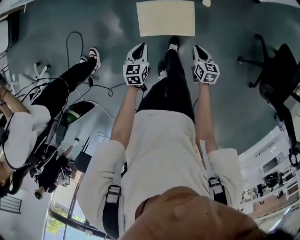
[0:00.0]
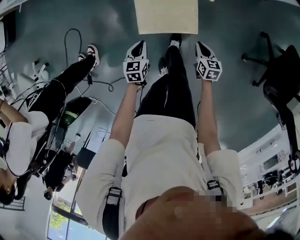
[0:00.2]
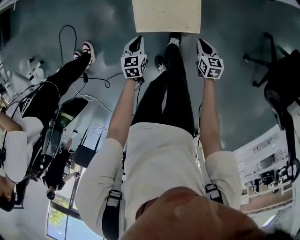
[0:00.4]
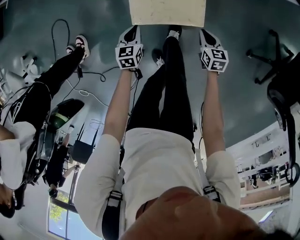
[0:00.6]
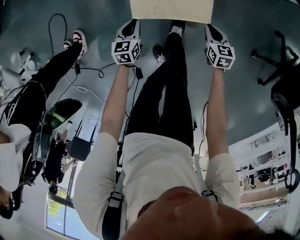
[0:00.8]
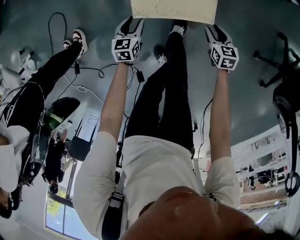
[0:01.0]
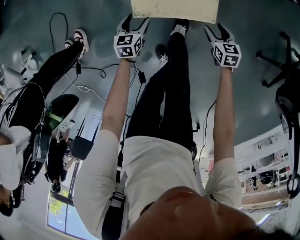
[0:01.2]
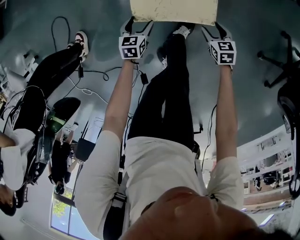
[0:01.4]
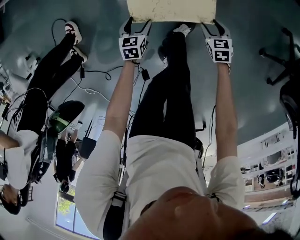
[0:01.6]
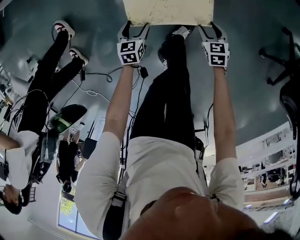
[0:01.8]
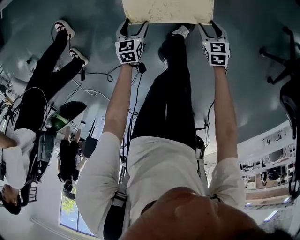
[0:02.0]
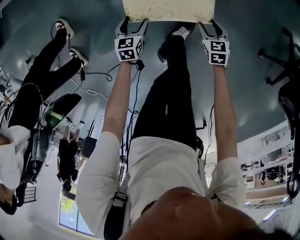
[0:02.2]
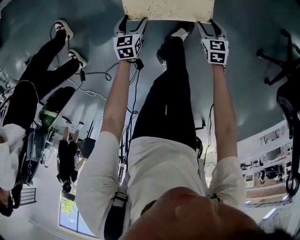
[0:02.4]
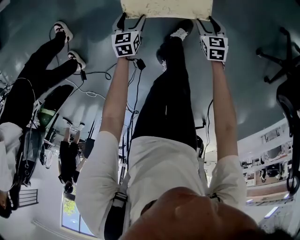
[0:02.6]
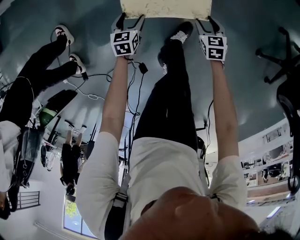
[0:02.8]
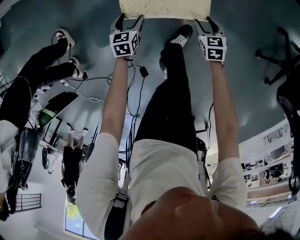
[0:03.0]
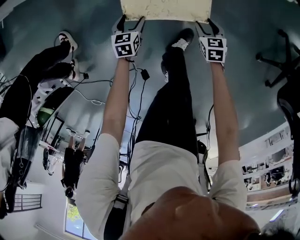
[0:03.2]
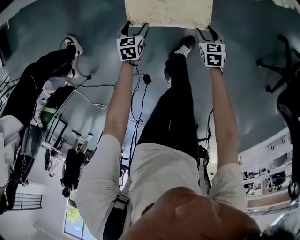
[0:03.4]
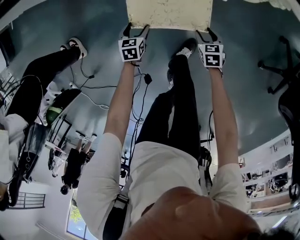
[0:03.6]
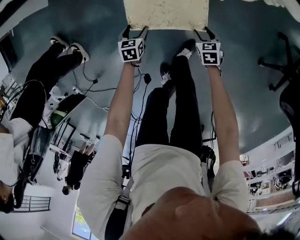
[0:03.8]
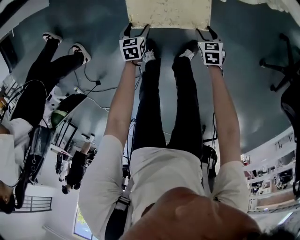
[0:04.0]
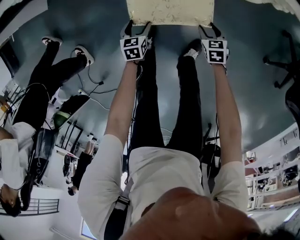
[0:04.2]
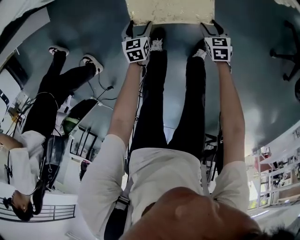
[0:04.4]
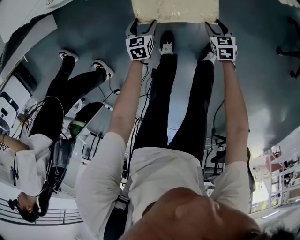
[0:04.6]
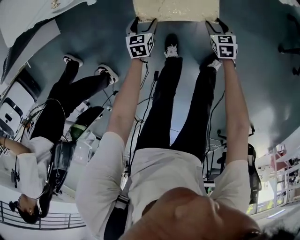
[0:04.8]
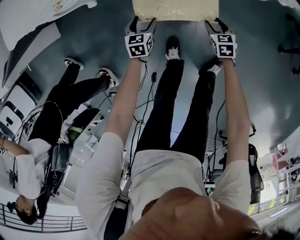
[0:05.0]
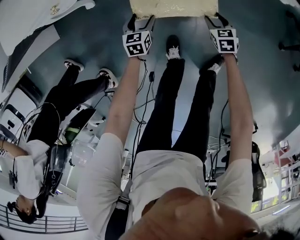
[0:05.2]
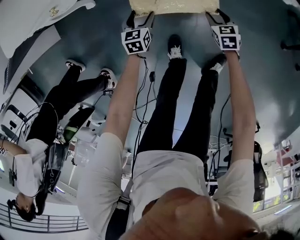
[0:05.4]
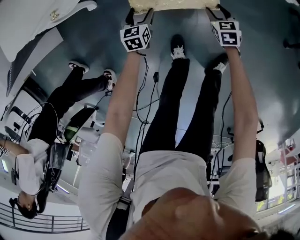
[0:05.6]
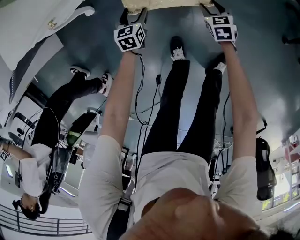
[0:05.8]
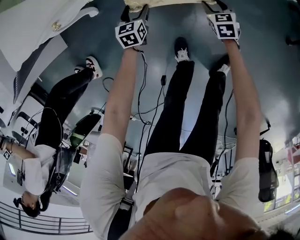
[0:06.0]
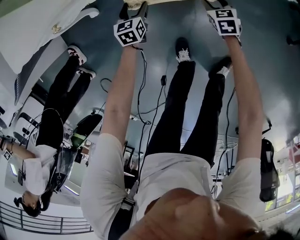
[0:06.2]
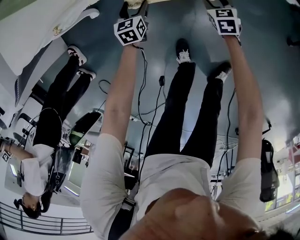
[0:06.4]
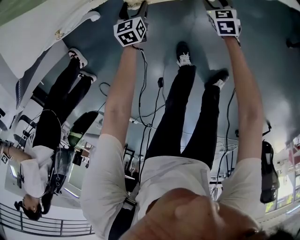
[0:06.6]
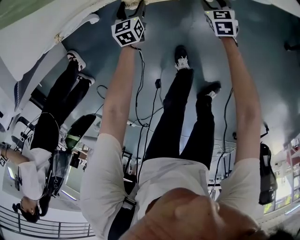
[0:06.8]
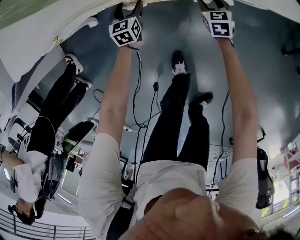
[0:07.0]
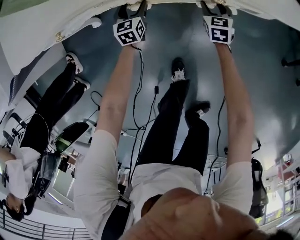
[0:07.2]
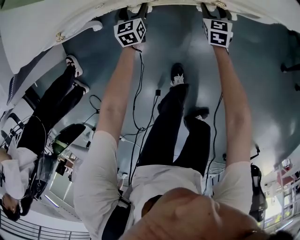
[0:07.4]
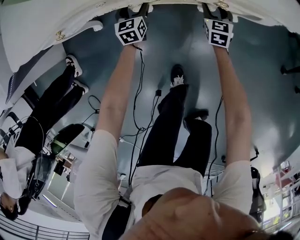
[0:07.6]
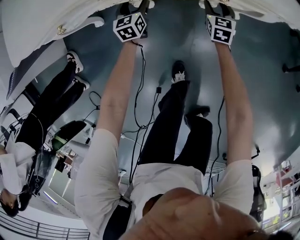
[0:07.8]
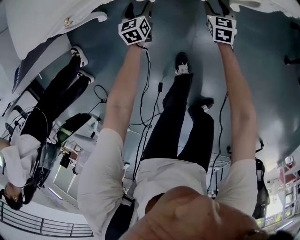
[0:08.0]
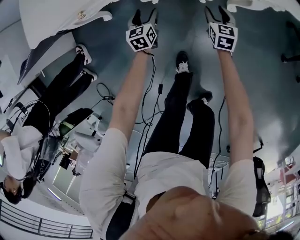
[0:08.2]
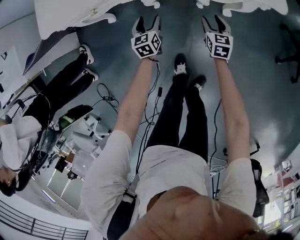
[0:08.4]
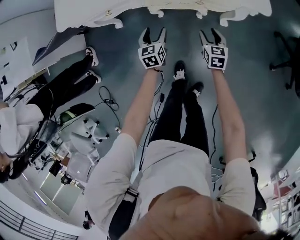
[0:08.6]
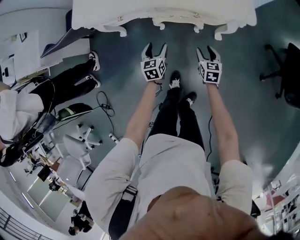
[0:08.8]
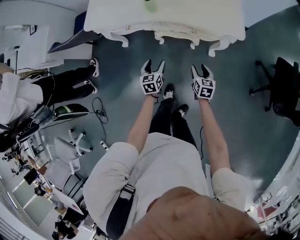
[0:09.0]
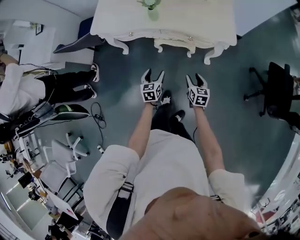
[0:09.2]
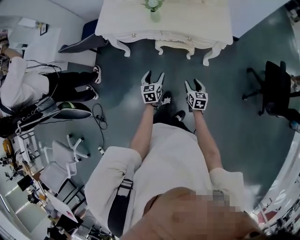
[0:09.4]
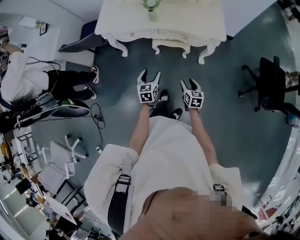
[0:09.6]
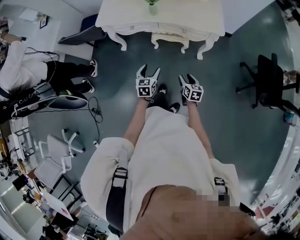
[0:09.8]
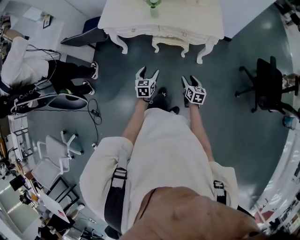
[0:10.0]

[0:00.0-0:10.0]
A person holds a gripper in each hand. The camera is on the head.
0:00.0 to 0:01.4: The grippers both shift downward by about 20 cm. The left gripper opens; the right gripper turns by roughly 20 degrees, and opens.
0:01.4 to 0:02.8: The two grippers go approximately 10 cm forward.
0:02.8 to 0:04.2: The right gripper goes approximately 5 cm forward. Meanwhile the left gripper shifts approximately 10 cm forward.
0:04.2 to 0:05.8: The left gripper shifts approximately 20 cm forward. Meanwhile the right gripper moves forward and to the left, approximately 15 cm.
0:05.8 to 0:07.2: The grippers both shift forward by roughly 15 cm.
0:07.2 to 0:08.6: Both grippers move upward and backward, about 30 cm.
0:08.6 to 0:10.0: Both grippers move backward and upward, about 35 cm.

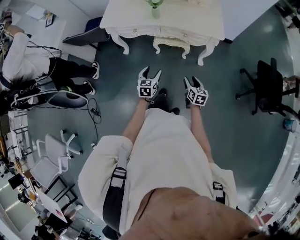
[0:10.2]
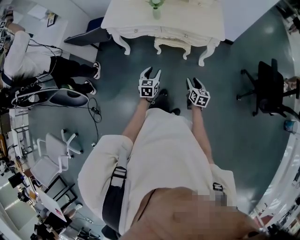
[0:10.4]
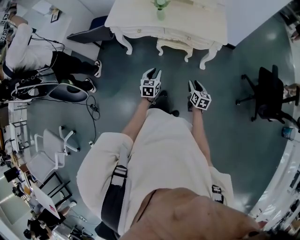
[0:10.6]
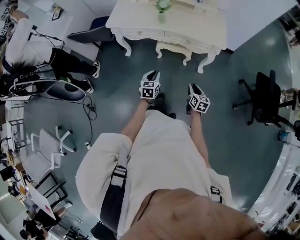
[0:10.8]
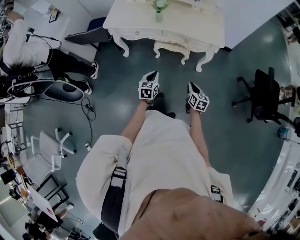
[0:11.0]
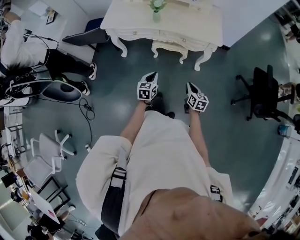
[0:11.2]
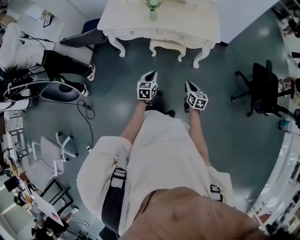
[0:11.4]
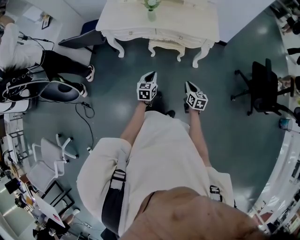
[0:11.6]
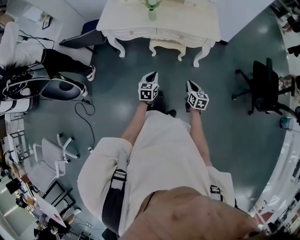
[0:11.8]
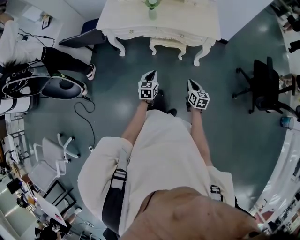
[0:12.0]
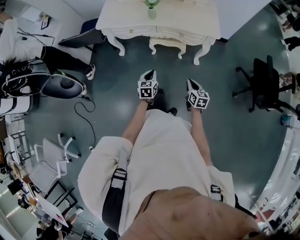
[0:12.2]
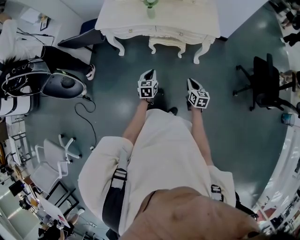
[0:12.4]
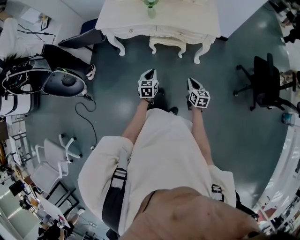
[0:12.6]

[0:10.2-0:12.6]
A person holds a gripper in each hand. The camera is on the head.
0:10.2 to 0:11.4: The left gripper closes up. Meanwhile the right gripper closes its fingers.
0:11.4 to 0:12.6: The grippers move only a little.

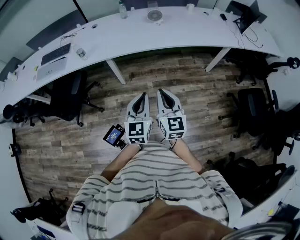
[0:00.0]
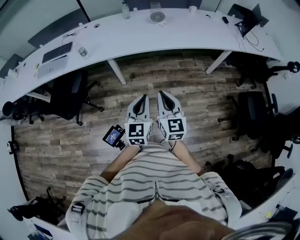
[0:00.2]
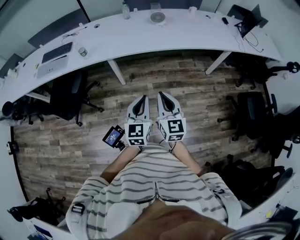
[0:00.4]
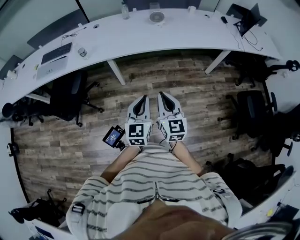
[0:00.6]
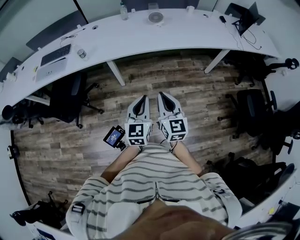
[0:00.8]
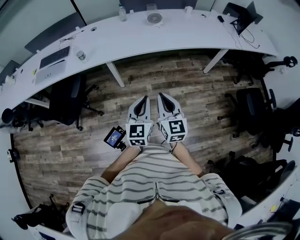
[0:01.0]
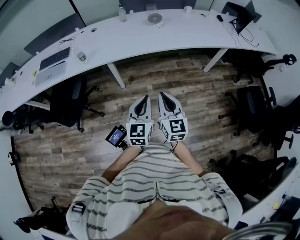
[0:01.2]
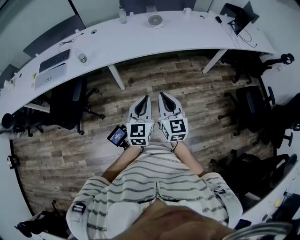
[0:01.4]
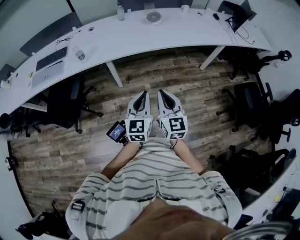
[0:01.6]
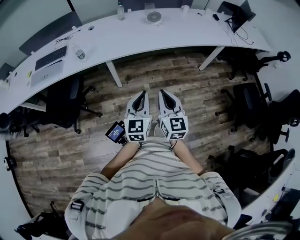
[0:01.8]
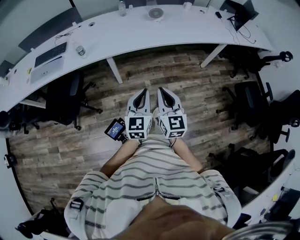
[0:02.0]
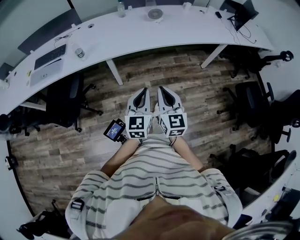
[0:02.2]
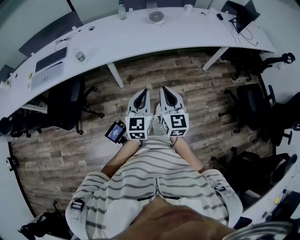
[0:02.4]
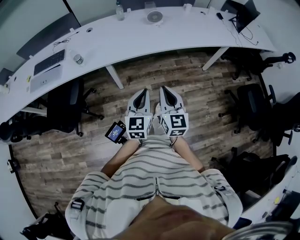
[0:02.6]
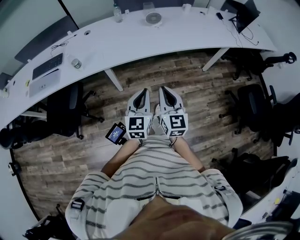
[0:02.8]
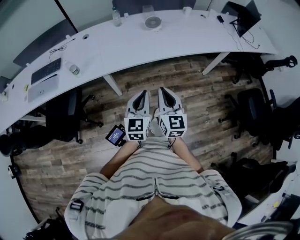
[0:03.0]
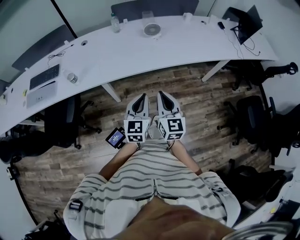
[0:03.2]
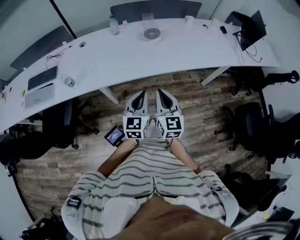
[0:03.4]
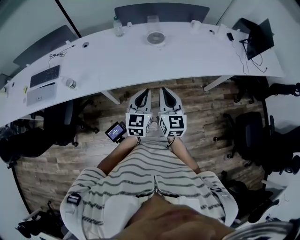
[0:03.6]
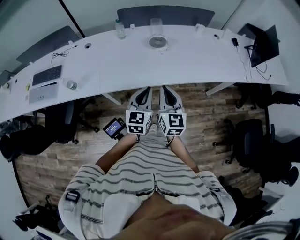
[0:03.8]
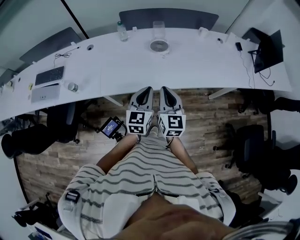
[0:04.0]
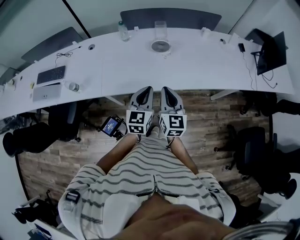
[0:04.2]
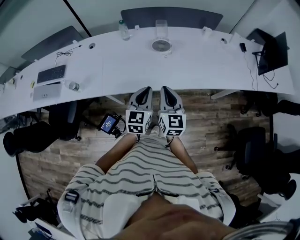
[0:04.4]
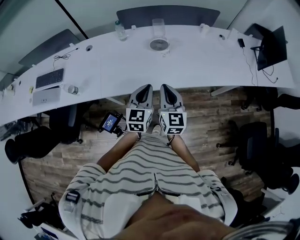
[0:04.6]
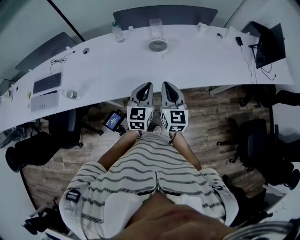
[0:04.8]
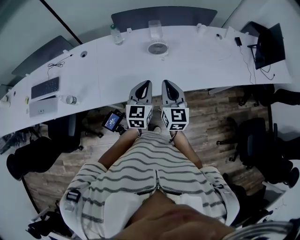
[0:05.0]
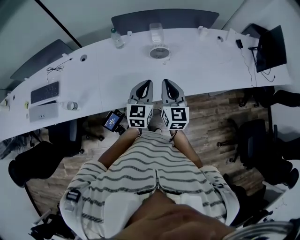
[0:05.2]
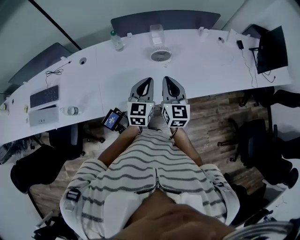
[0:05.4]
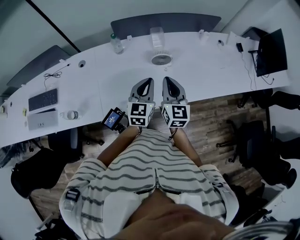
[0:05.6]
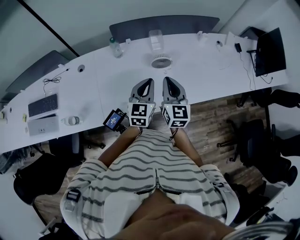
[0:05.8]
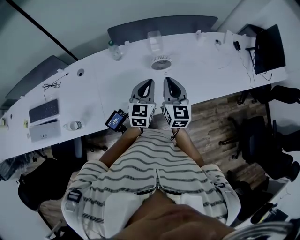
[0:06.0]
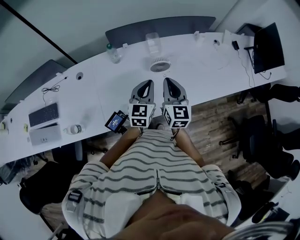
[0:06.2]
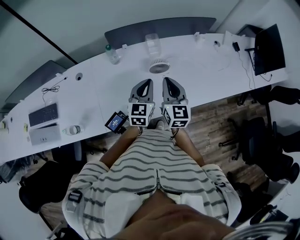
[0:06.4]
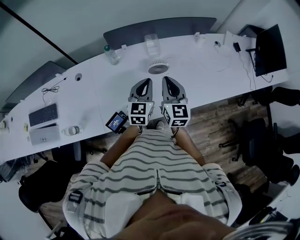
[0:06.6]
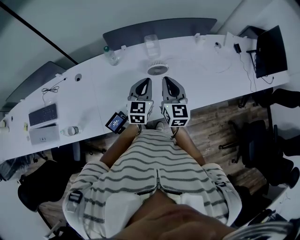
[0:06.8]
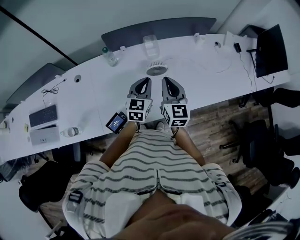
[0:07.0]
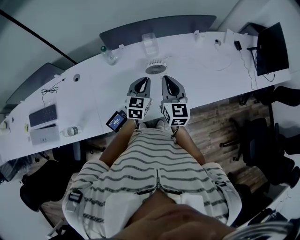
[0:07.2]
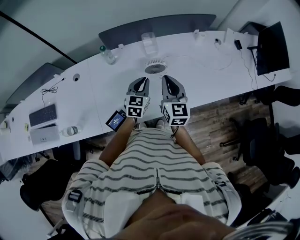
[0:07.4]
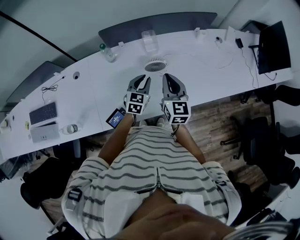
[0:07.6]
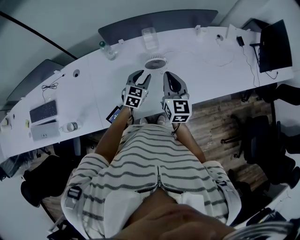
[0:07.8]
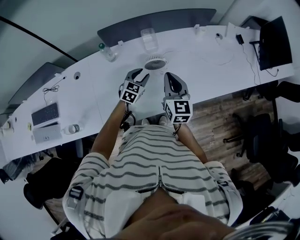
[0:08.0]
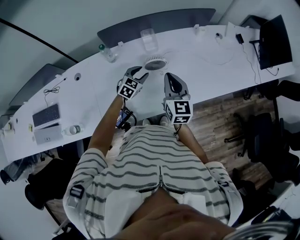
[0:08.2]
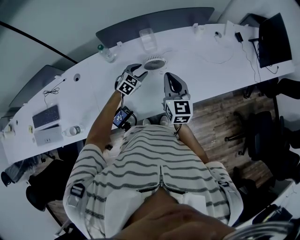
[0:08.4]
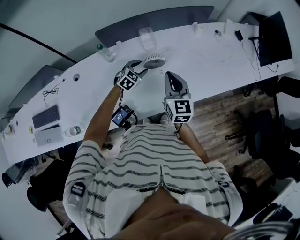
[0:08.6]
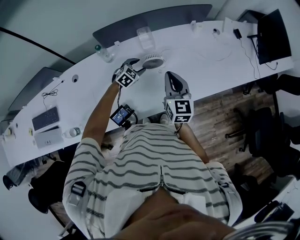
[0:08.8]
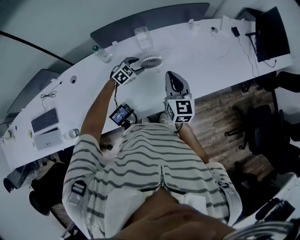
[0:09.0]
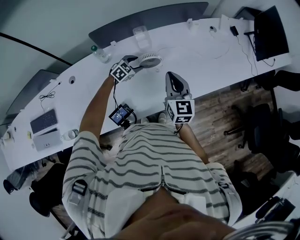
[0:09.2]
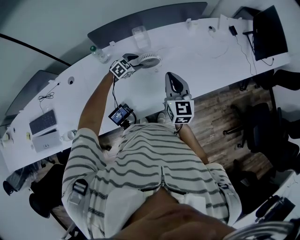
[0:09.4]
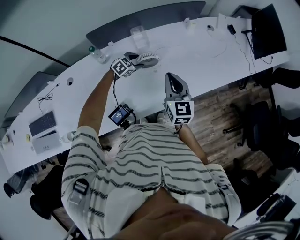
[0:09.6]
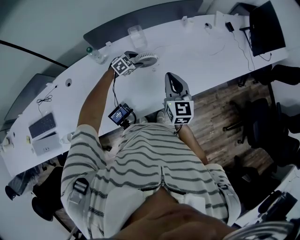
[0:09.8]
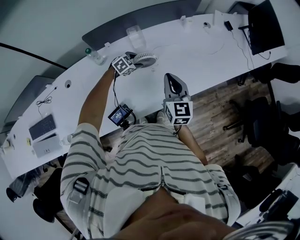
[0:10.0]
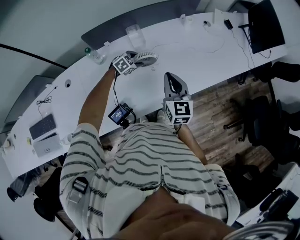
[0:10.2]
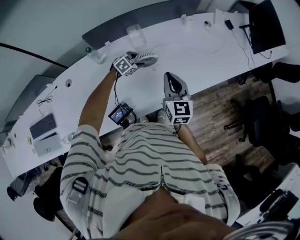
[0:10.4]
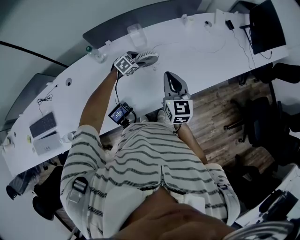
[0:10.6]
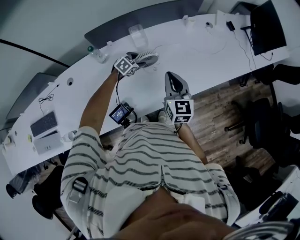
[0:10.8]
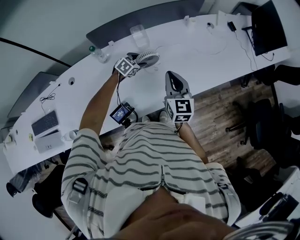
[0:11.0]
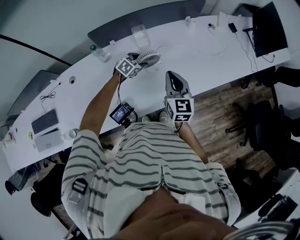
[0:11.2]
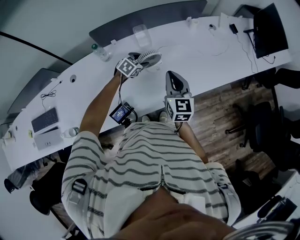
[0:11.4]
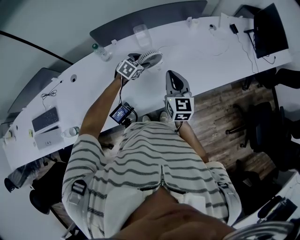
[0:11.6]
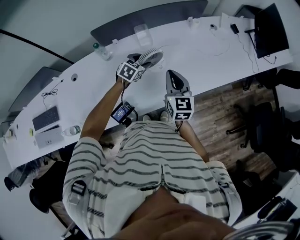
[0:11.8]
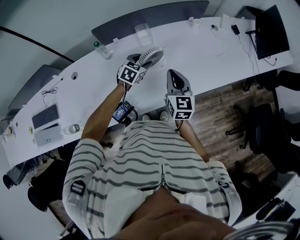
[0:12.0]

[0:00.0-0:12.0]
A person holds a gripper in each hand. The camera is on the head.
0:00.0 to 0:01.6: Both grippers move to the left, approximately 5 cm.
0:01.6 to 0:03.0: The grippers both shift forward by roughly 15 cm.
0:03.0 to 0:04.4: The grippers both shift forward by about 25 cm.
0:04.4 to 0:06.0: The grippers both shift forward by roughly 20 cm.
0:06.0 to 0:07.6: The left gripper goes about 15 cm downward and forward, while the right gripper heads forward, covering approximately 5 cm.
0:07.6 to 0:09.0: The left gripper moves downward and forward, roughly 15 cm, rotates about 40 degrees, and opens its fingers.
0:09.0 to 0:10.4: There are only small adjustments of the grippers.
0:10.4 to 0:12.0: The left gripper heads upward, covering about 10 cm, and turns by about 30 degrees.
